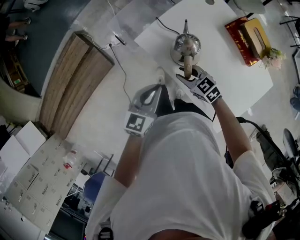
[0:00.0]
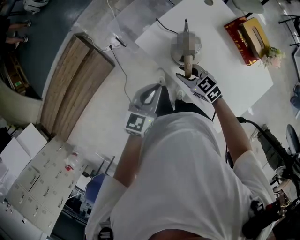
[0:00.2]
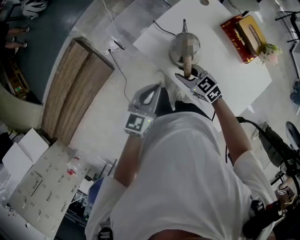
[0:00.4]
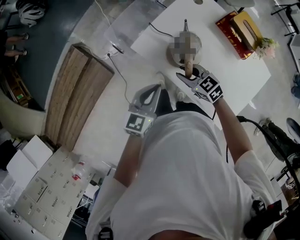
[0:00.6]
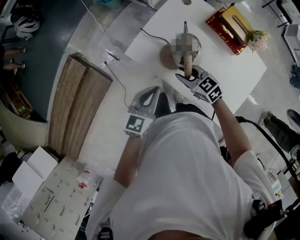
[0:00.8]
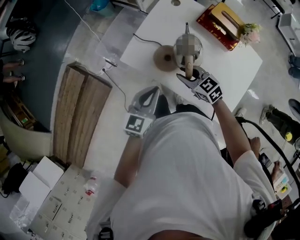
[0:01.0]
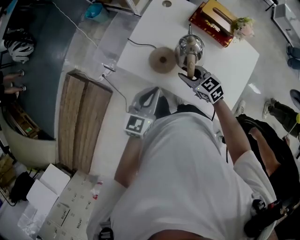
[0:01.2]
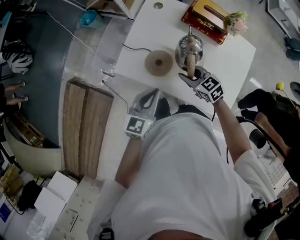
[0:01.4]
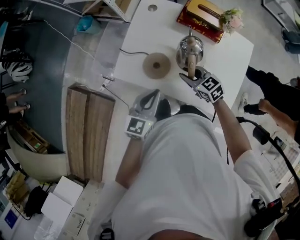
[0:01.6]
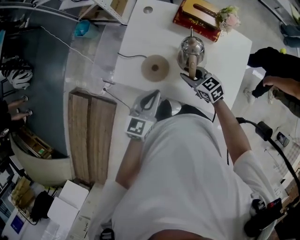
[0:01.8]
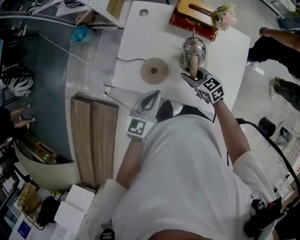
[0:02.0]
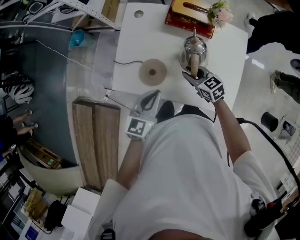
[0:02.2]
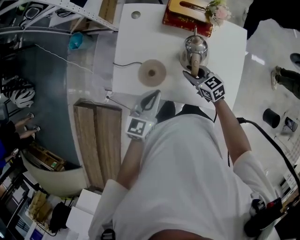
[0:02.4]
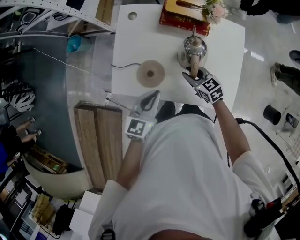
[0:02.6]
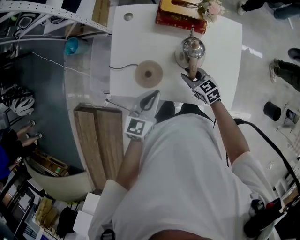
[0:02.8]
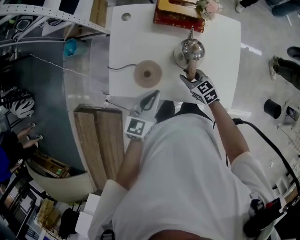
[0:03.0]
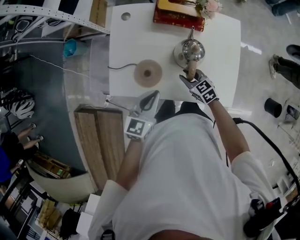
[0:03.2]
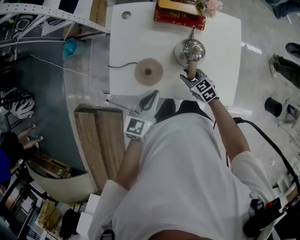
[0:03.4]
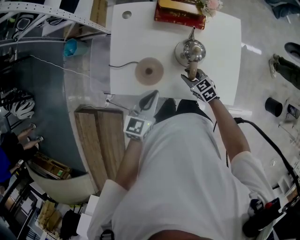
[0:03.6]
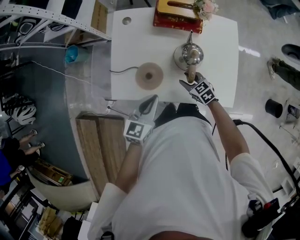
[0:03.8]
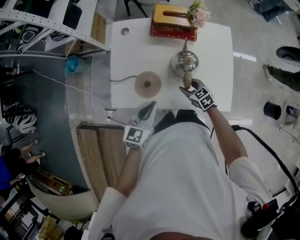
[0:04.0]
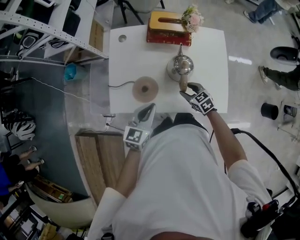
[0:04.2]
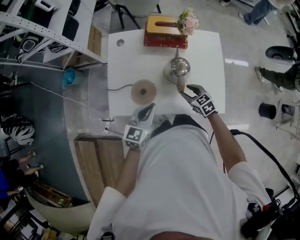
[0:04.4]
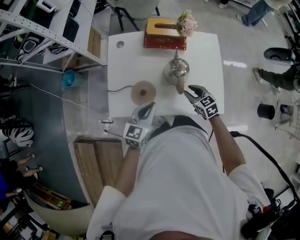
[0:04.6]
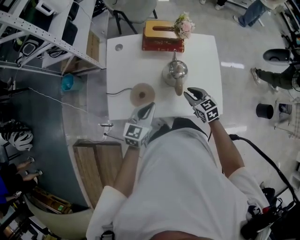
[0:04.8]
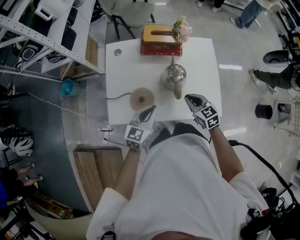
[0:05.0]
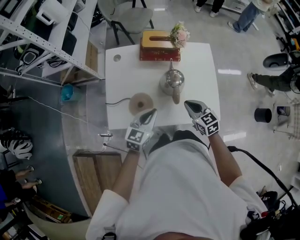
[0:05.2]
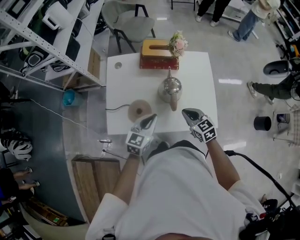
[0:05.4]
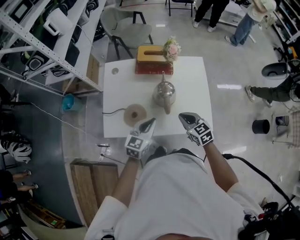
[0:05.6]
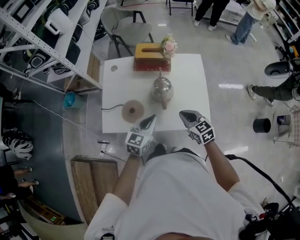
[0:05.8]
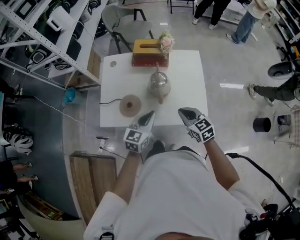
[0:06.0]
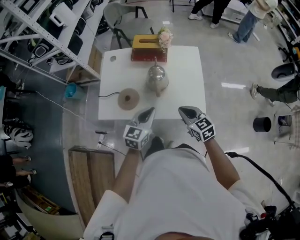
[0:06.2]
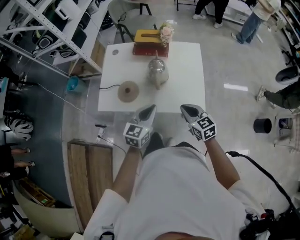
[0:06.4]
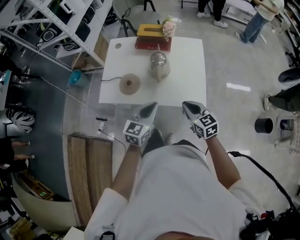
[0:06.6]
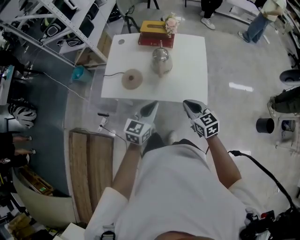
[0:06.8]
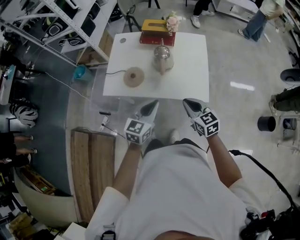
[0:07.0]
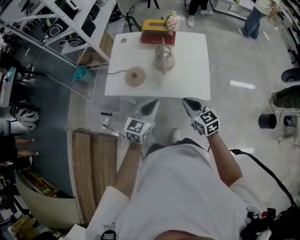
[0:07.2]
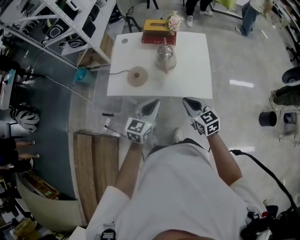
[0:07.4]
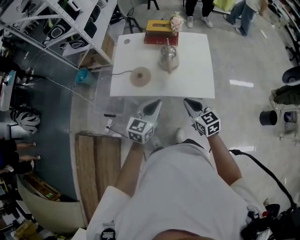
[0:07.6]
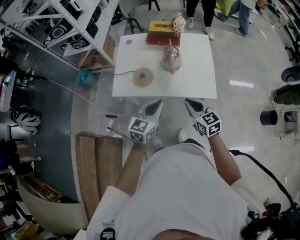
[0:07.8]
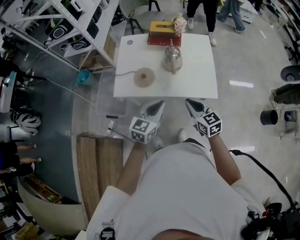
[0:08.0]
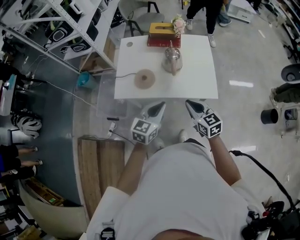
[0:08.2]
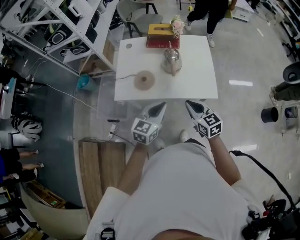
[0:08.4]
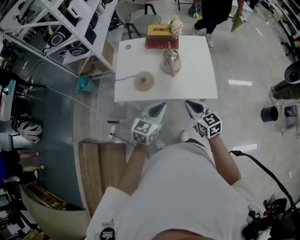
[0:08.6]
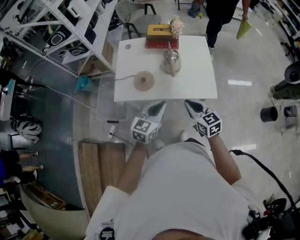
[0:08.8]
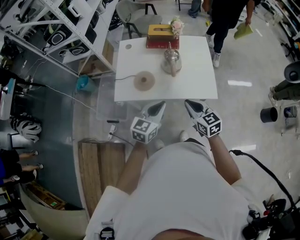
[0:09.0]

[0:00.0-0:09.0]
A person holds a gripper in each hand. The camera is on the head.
0:00.0 to 0:01.6: The right gripper changes place by about 15 cm, and rotates approximately 30 degrees. The left gripper ends up roughly 10 cm from where it was, and changes its angle by roughly 30 degrees.
0:01.6 to 0:03.0: The left gripper changes place by approximately 5 cm. Meanwhile the right gripper shifts some 10 cm downward and to the right.
0:03.0 to 0:04.4: The right gripper ends up approximately 5 cm from where it was.
0:04.4 to 0:06.0: The left gripper moves to the right and upward, approximately 15 cm; the right gripper shifts roughly 20 cm upward, backward and to the right, and closes up.
0:06.0 to 0:07.6: Both grippers travel together backward, roughly 15 cm.
0:07.6 to 0:09.0: The grippers stay close to where they were, moving slightly.

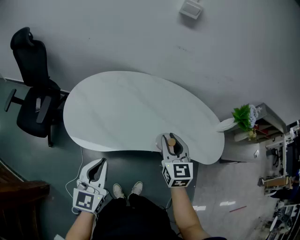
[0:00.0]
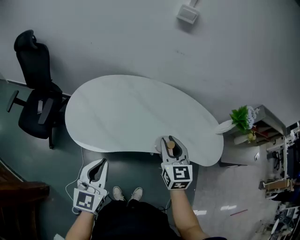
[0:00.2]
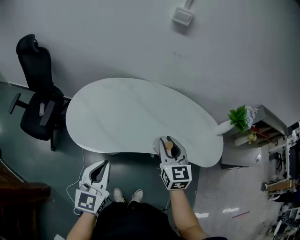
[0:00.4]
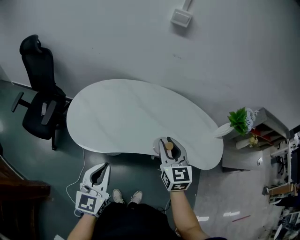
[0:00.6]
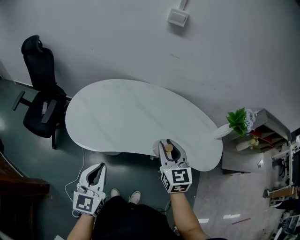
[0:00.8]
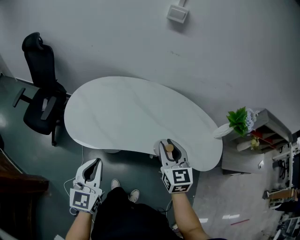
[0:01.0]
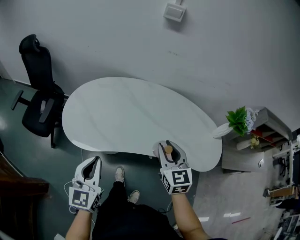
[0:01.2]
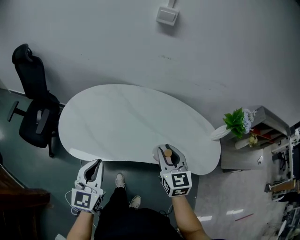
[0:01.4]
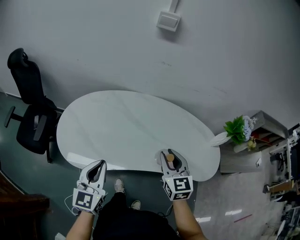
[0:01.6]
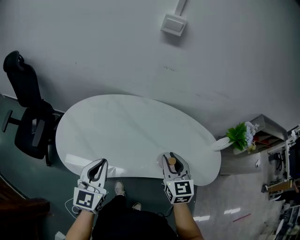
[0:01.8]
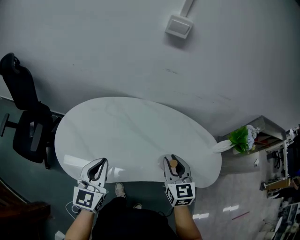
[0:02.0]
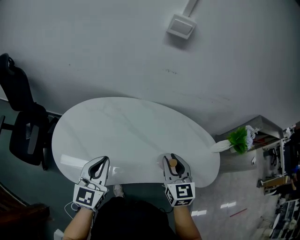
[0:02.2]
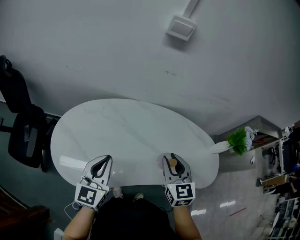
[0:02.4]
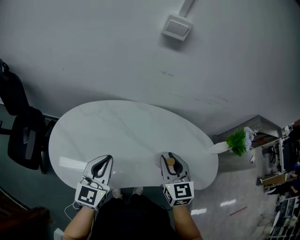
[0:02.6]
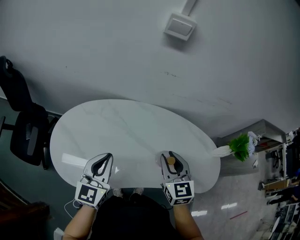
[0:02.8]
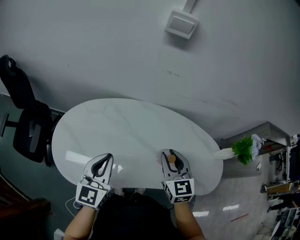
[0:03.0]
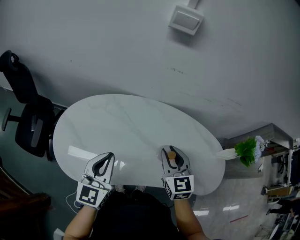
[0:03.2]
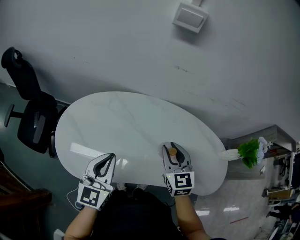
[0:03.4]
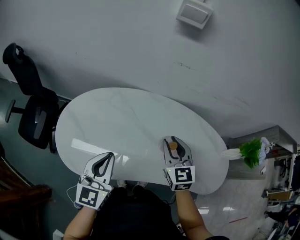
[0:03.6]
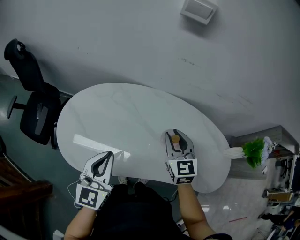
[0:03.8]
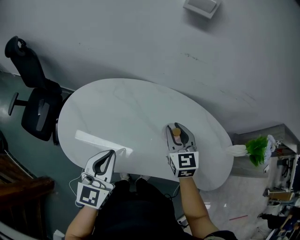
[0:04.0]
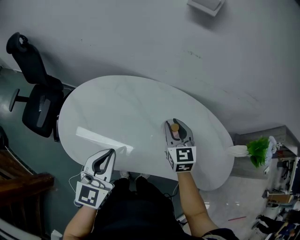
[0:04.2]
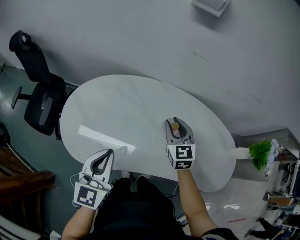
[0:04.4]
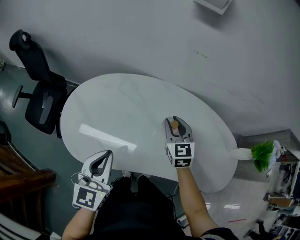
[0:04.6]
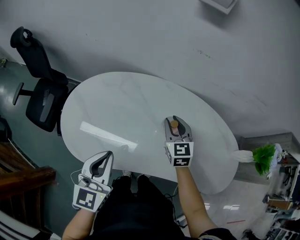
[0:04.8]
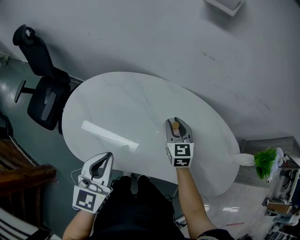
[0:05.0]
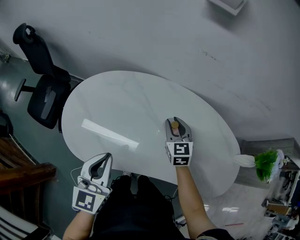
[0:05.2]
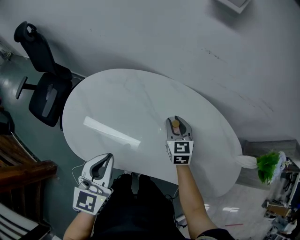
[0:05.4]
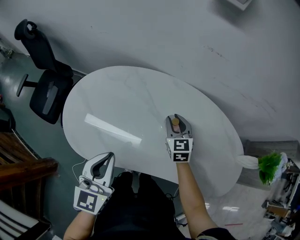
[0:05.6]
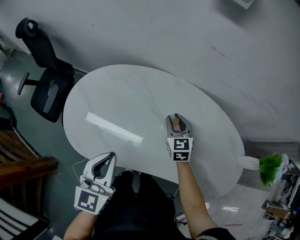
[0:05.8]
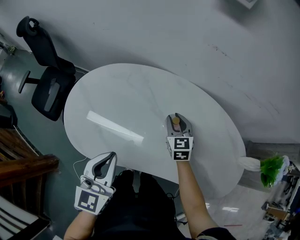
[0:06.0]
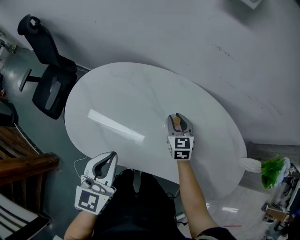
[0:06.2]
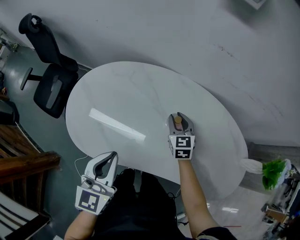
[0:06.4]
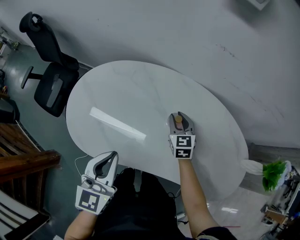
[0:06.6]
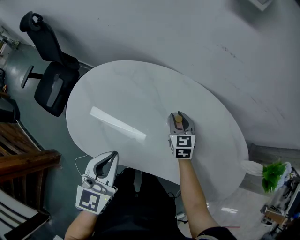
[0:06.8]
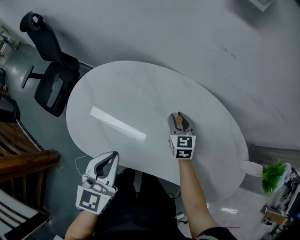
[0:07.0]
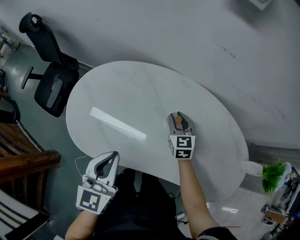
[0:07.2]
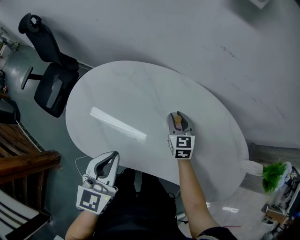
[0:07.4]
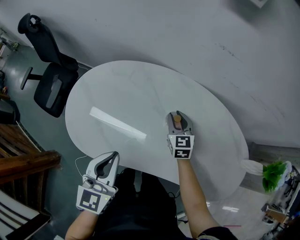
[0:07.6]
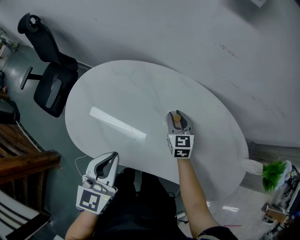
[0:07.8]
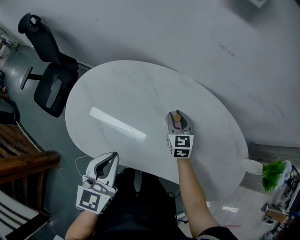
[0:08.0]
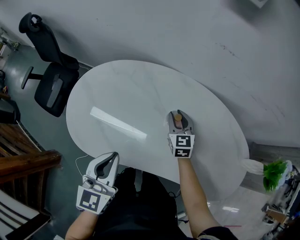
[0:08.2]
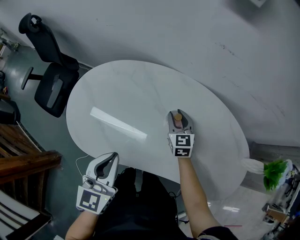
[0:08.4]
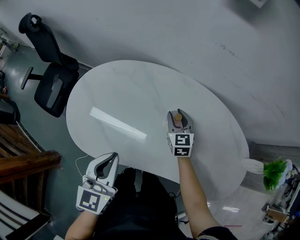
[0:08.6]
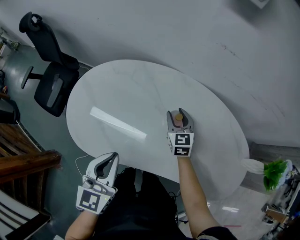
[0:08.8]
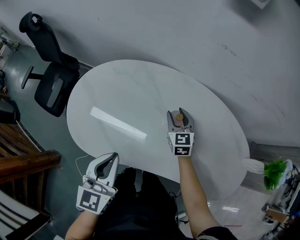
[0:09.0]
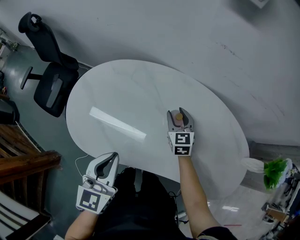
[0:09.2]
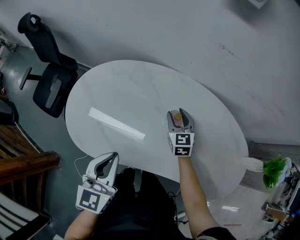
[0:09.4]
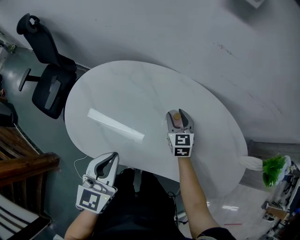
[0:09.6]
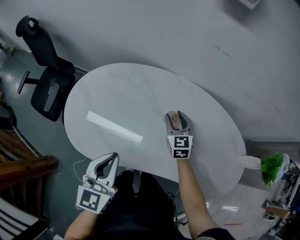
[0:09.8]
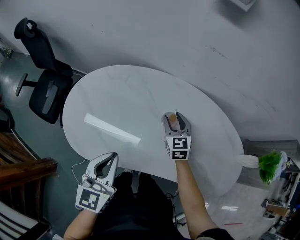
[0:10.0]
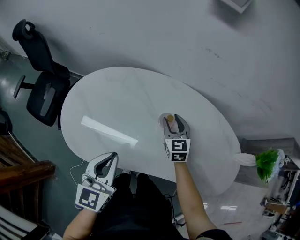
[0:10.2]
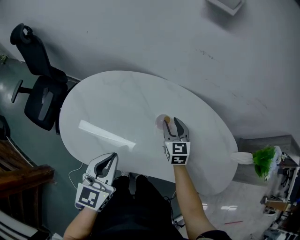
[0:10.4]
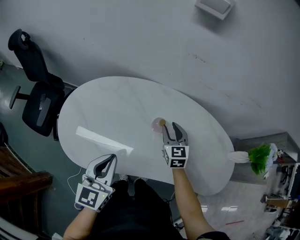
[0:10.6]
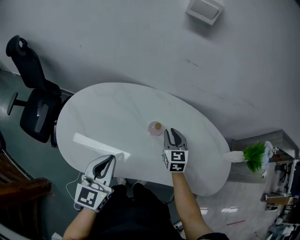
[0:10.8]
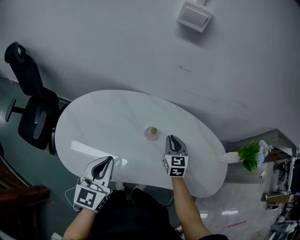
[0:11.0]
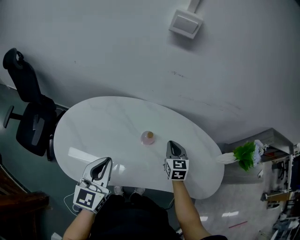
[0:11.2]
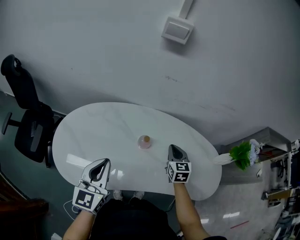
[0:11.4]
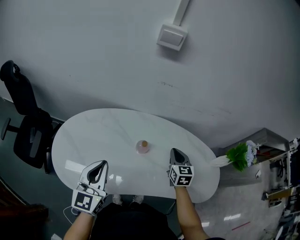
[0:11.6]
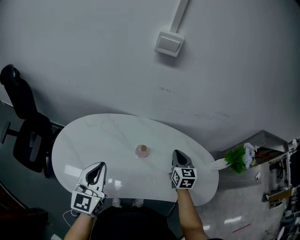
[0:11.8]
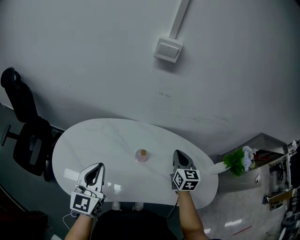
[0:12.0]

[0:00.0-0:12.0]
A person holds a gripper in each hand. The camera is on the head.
0:00.0 to 0:01.6: The right gripper is displaced to the right by roughly 10 cm. The left gripper moves forward and to the right, roughly 10 cm.
0:01.6 to 0:03.0: The grippers both shift forward by approximately 15 cm.
0:03.0 to 0:04.4: The right gripper heads forward and downward, covering about 10 cm.
0:04.4 to 0:06.0: The right gripper heads downward, covering about 10 cm.
0:06.0 to 0:09.0: The grippers make only small movements.
0:09.0 to 0:10.4: The right gripper moves approximately 5 cm.
0:10.4 to 0:12.0: The right gripper moves upward and to the right, roughly 20 cm, and closes; the left gripper heads upward, covering some 10 cm.

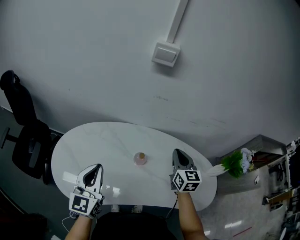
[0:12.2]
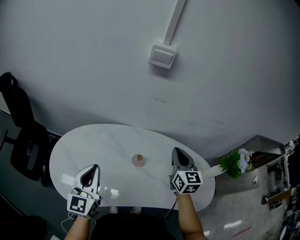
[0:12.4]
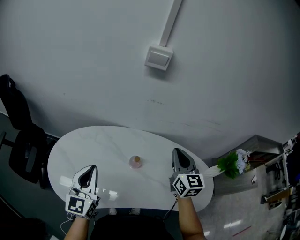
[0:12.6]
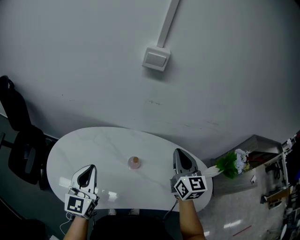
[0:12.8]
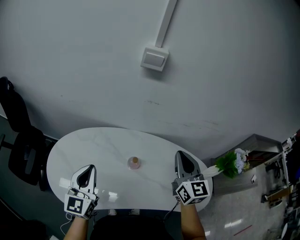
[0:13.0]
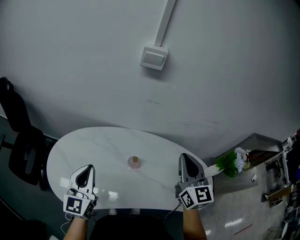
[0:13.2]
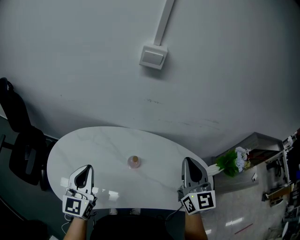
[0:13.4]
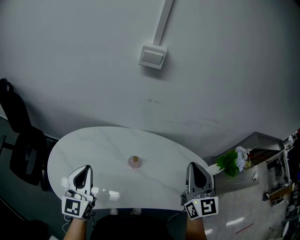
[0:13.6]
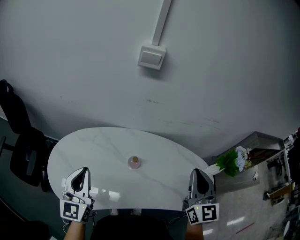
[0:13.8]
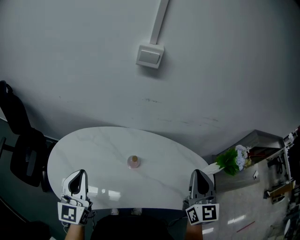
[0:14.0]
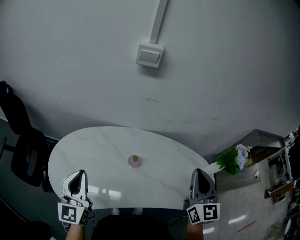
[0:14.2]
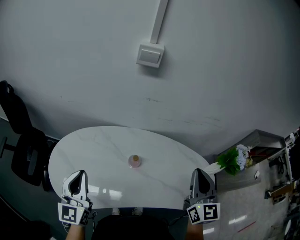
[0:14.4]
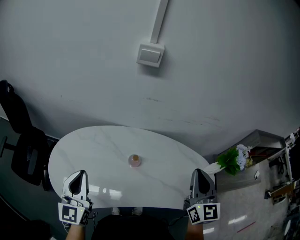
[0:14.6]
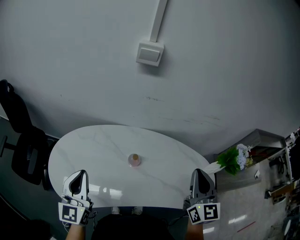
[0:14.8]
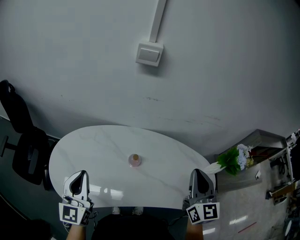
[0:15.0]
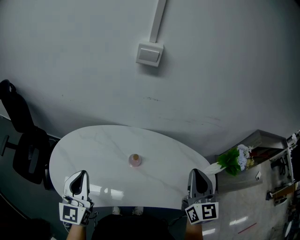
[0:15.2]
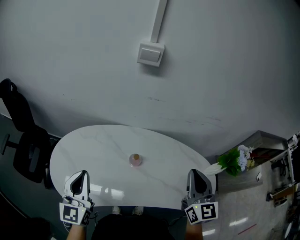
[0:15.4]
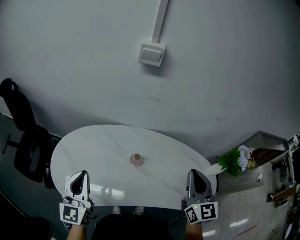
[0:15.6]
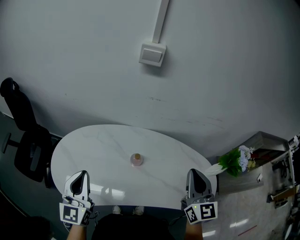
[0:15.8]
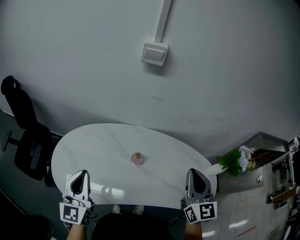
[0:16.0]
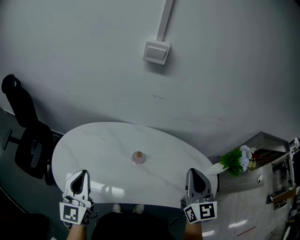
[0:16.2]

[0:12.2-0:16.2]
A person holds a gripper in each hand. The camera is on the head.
0:12.2 to 0:13.6: The right gripper heads upward and backward, covering about 15 cm.
0:13.6 to 0:16.2: There are only small adjustments of the grippers.
